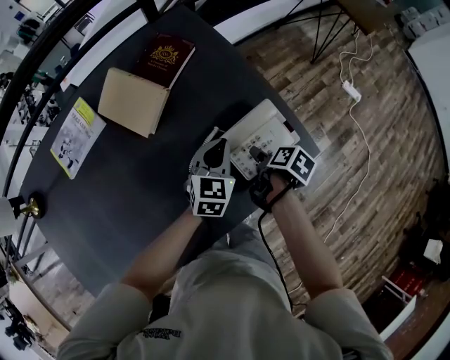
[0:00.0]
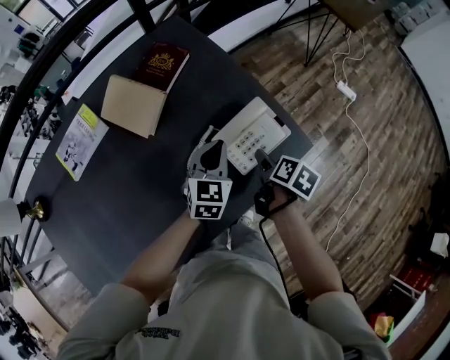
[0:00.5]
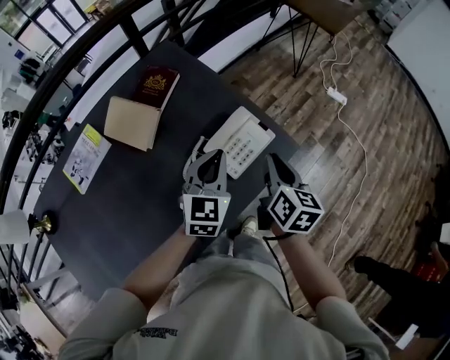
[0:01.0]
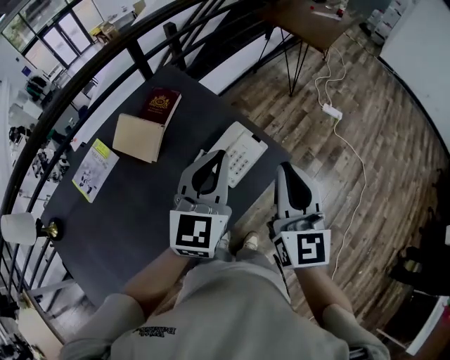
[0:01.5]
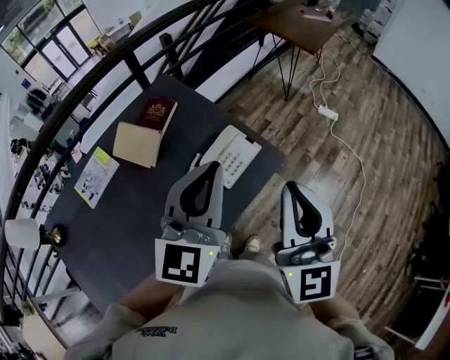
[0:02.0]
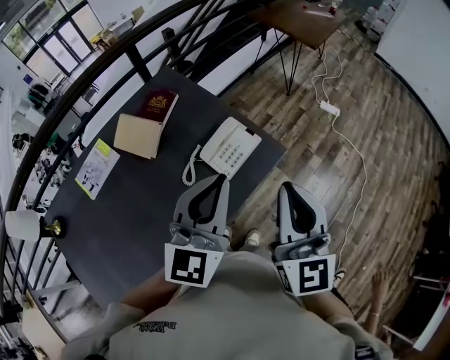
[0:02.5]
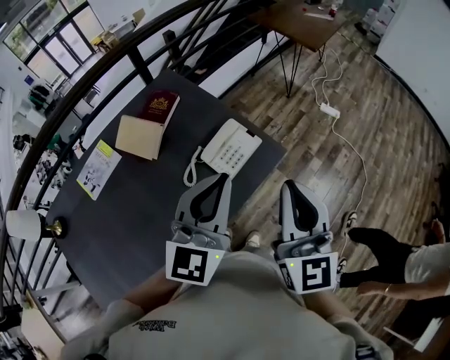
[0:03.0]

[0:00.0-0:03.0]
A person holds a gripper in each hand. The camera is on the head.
0:00.0 to 0:01.5: The left gripper travels upward by roughly 30 cm, and rotates approximately 30 degrees.
0:01.5 to 0:03.0: The left gripper ends up roughly 10 cm from where it was.

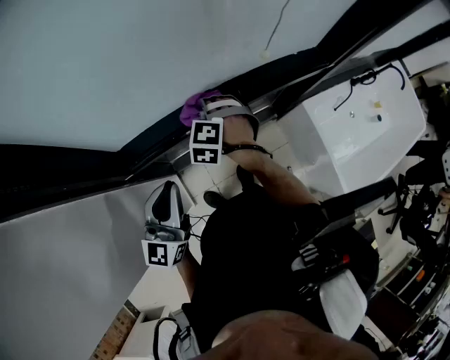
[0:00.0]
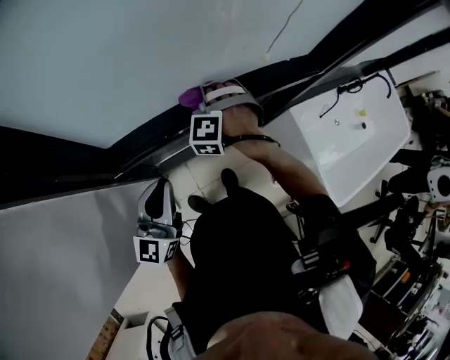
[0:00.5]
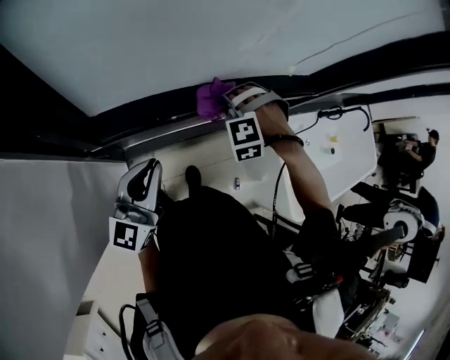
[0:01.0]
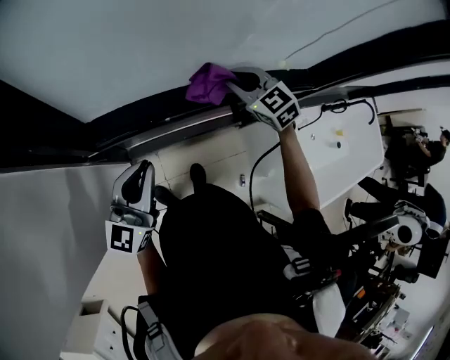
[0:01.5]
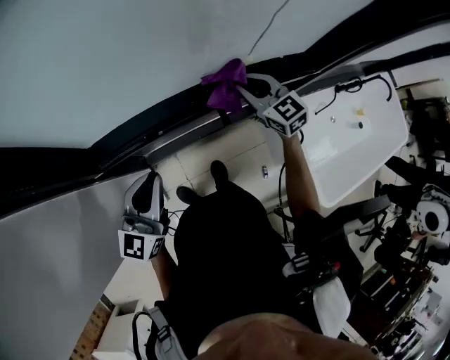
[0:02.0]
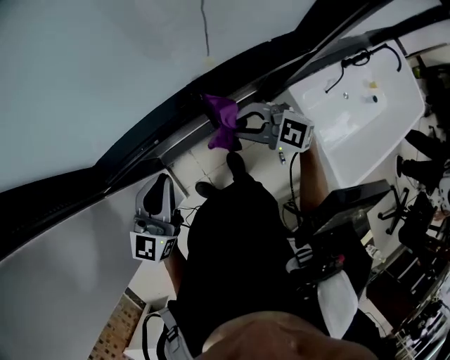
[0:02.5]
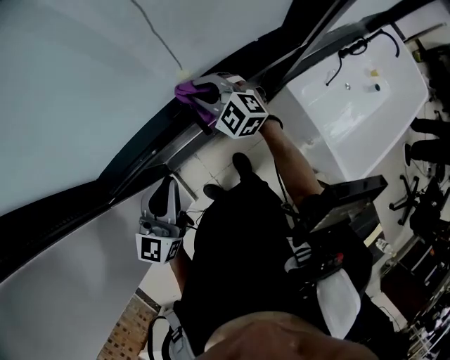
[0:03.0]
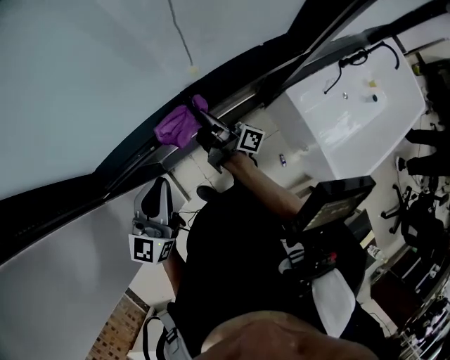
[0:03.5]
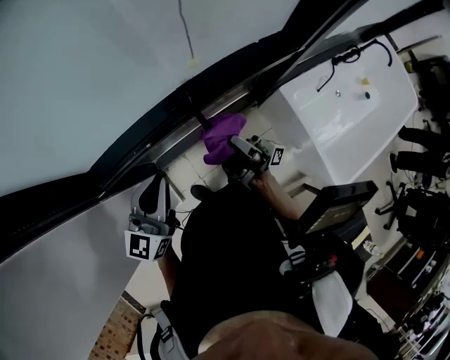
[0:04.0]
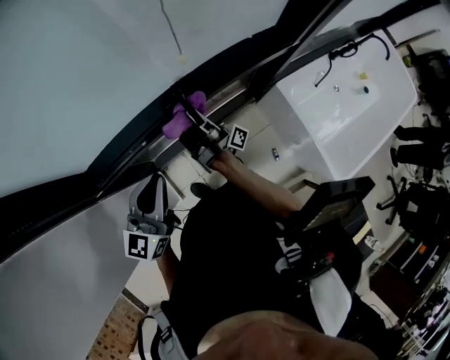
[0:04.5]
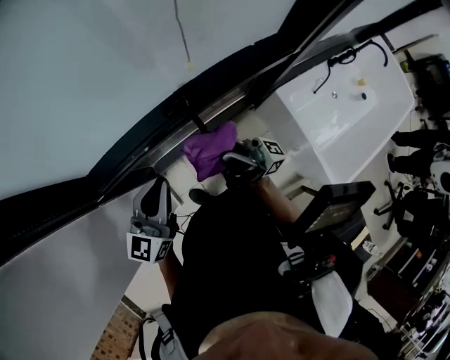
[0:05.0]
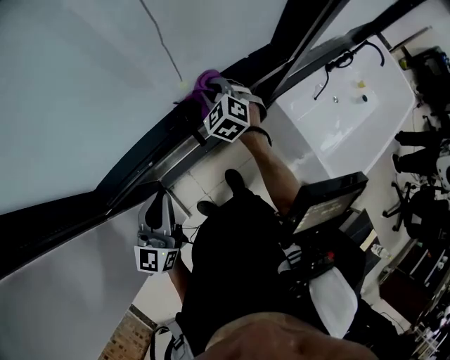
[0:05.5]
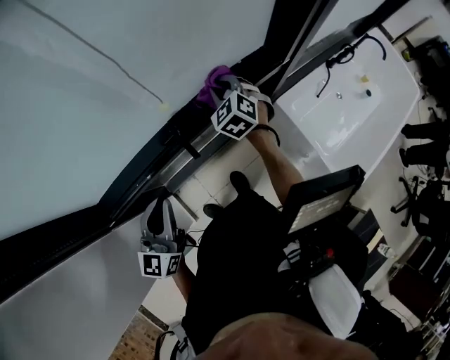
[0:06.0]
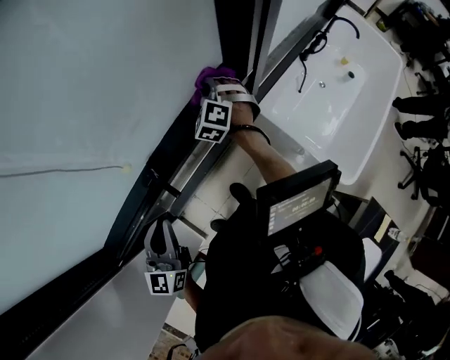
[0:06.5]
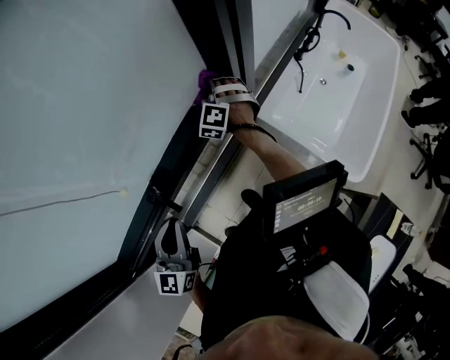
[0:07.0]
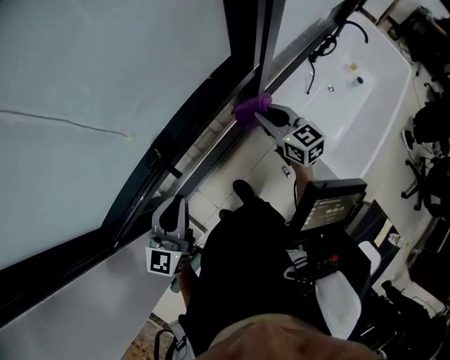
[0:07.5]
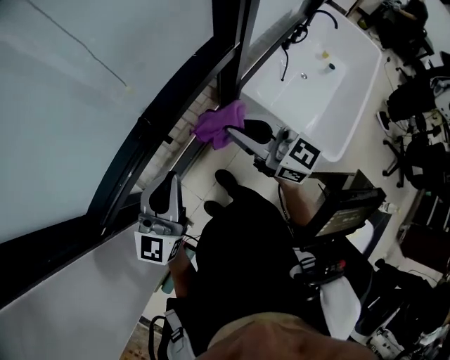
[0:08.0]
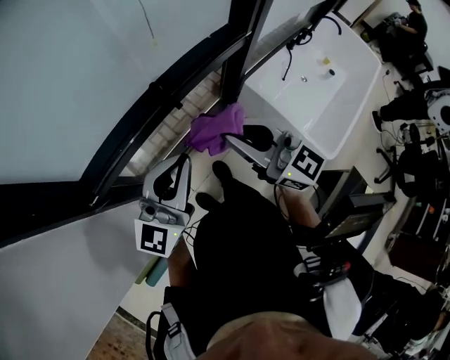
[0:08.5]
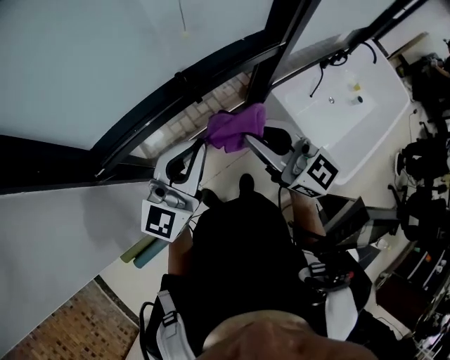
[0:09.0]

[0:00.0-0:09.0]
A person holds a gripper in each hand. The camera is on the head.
0:00.0 to 0:02.0: The right gripper changes place by about 20 cm, and rotates roughly 70 degrees.
0:02.0 to 0:04.5: The left gripper changes place by roughly 5 cm; the right gripper tips its fingers upward by approximately 60 degrees.
0:04.5 to 0:07.0: The left gripper changes place by some 15 cm. The right gripper goes upward and returns, some 10 cm each way, and angles its fingers downward, by some 70 degrees.
0:07.0 to 0:09.0: The right gripper moves some 50 cm, and points its fingers approximately 40 degrees further upward. Meanwhile the left gripper moves approximately 15 cm, and rotates about 20 degrees.

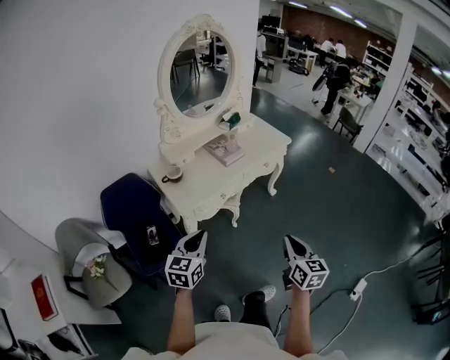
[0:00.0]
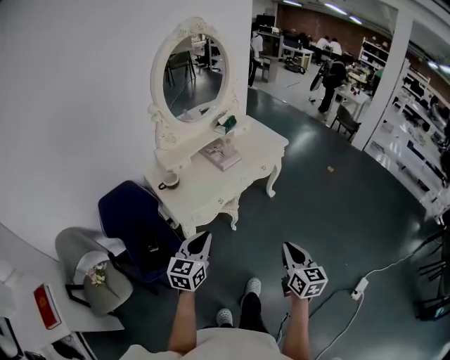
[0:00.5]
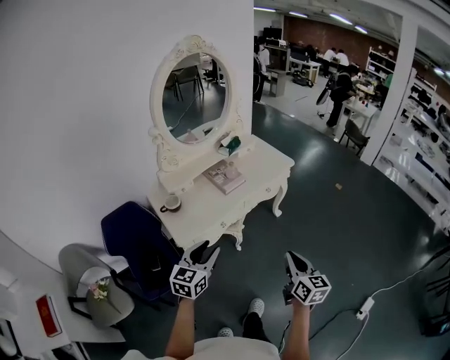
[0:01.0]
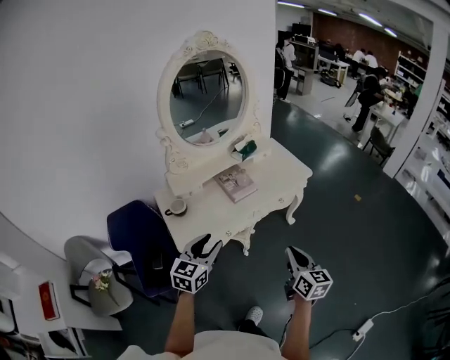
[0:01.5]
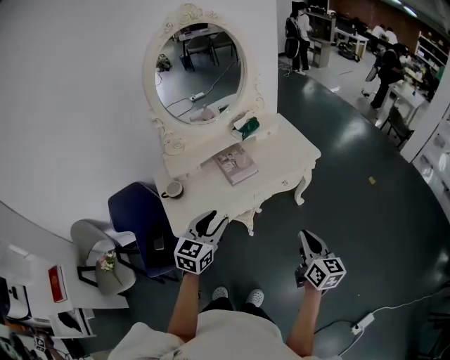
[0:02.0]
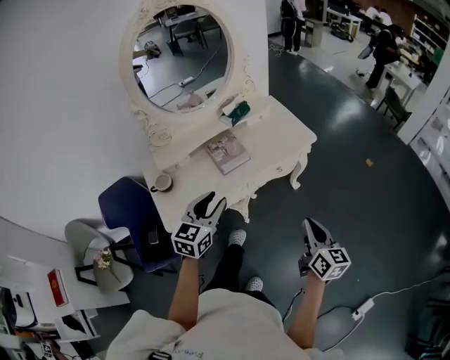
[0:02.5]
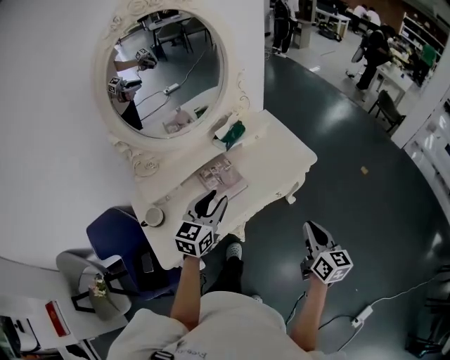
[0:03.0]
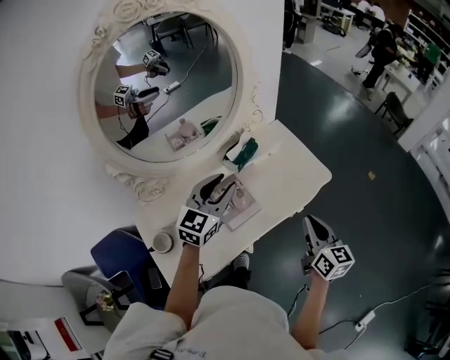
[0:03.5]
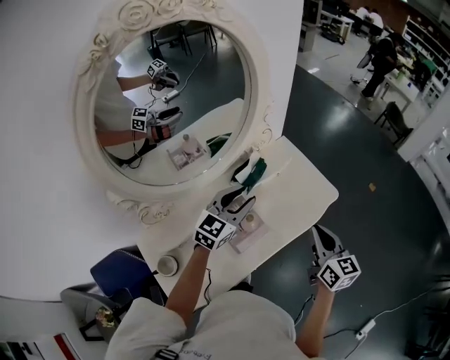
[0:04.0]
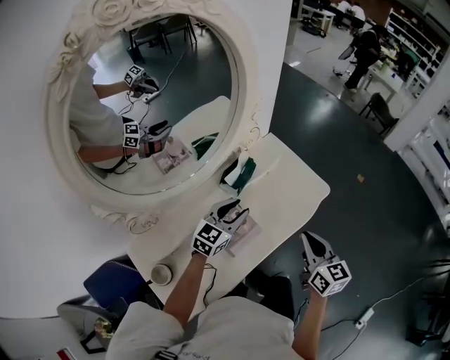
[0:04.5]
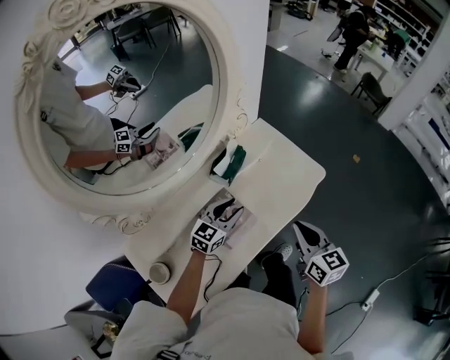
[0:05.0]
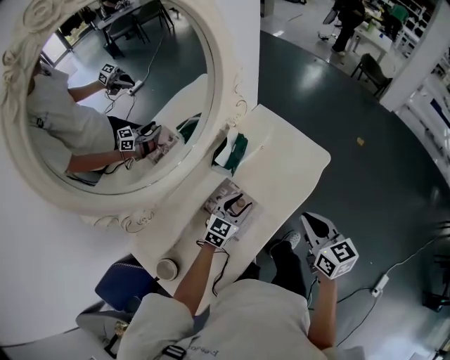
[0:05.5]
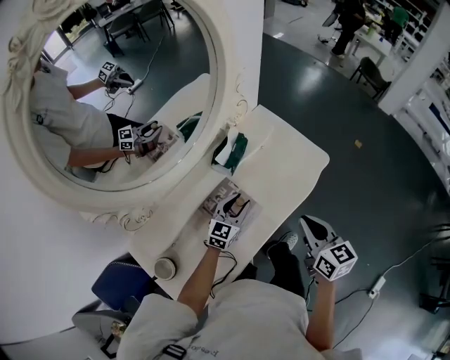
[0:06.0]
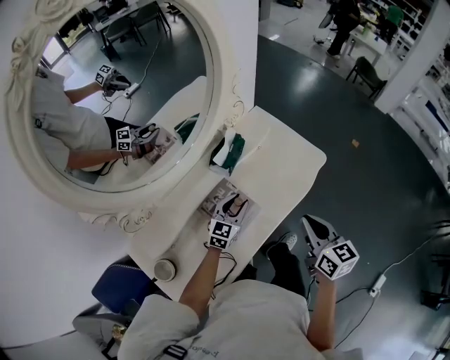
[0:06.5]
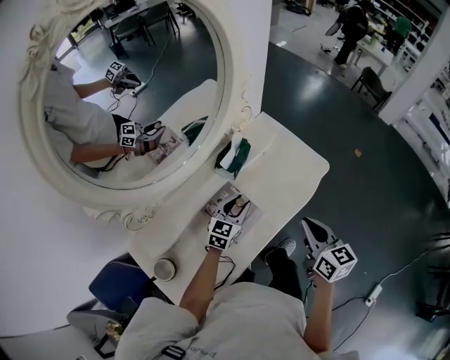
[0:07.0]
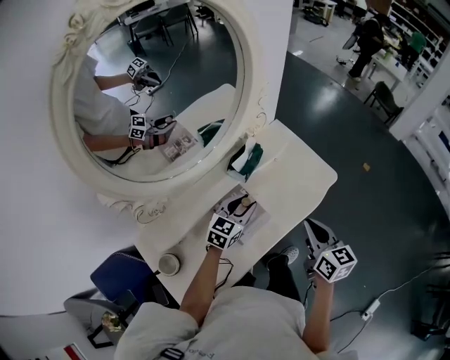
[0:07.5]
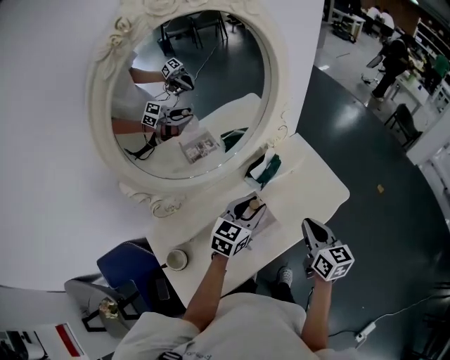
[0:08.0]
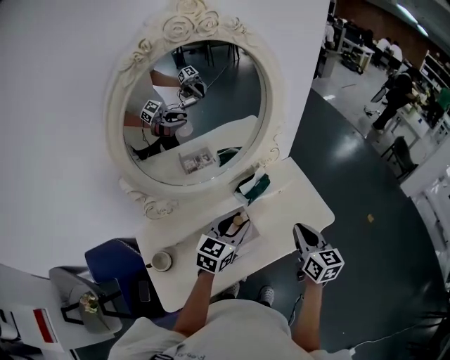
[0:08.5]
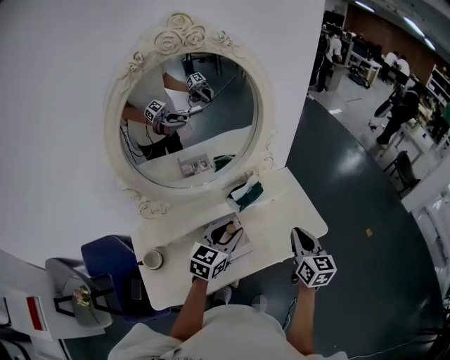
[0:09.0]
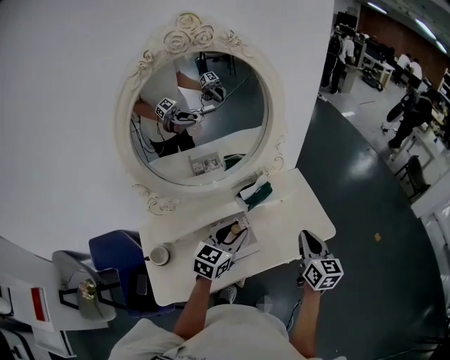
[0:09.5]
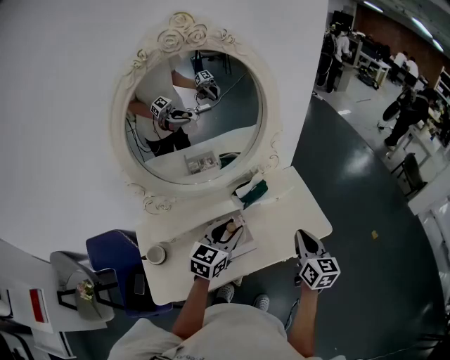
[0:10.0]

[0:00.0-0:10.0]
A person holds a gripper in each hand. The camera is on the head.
0:00.0 to 0:02.0: The grippers both shift forward and to the right by some 30 cm. The left gripper opens.
0:02.0 to 0:04.0: The grippers both shift forward by about 40 cm. The left gripper turns by some 20 degrees.
0:04.0 to 0:06.0: The right gripper shifts about 5 cm downward. The left gripper heads downward, covering about 20 cm.
0:06.0 to 0:08.0: The left gripper travels upward by roughly 15 cm, while the right gripper moves roughly 5 cm.
0:08.0 to 0:10.0: The left gripper shifts by approximately 5 cm. The right gripper moves to the right, approximately 10 cm.

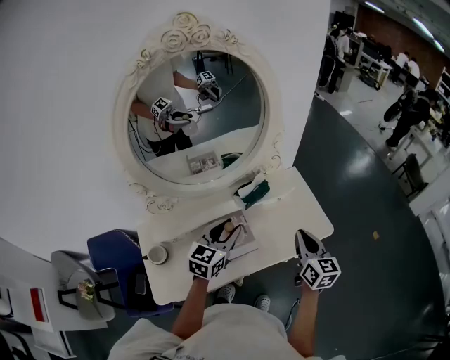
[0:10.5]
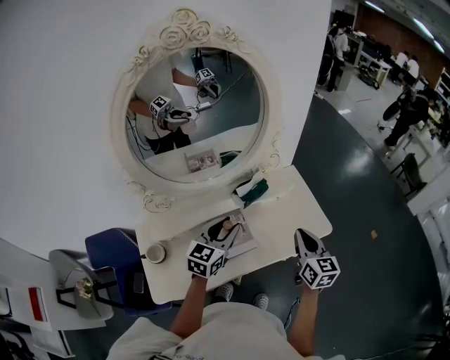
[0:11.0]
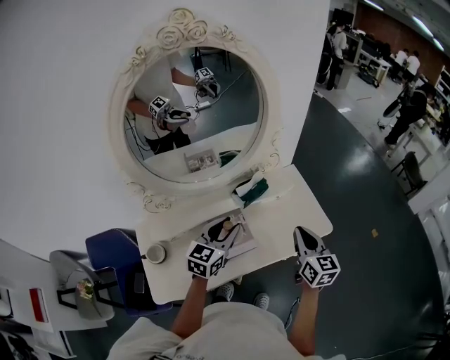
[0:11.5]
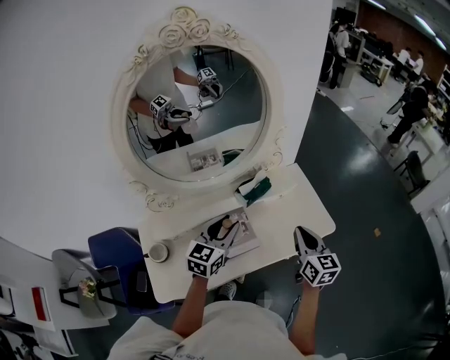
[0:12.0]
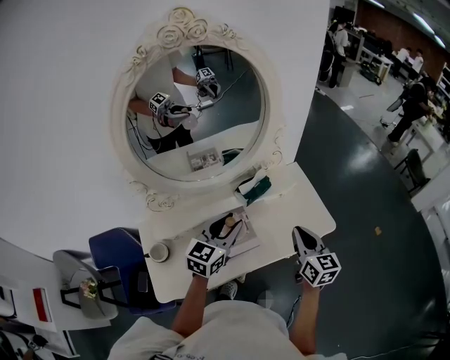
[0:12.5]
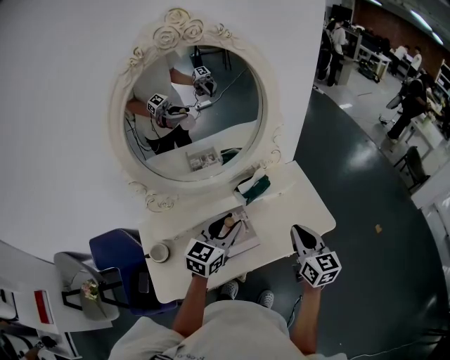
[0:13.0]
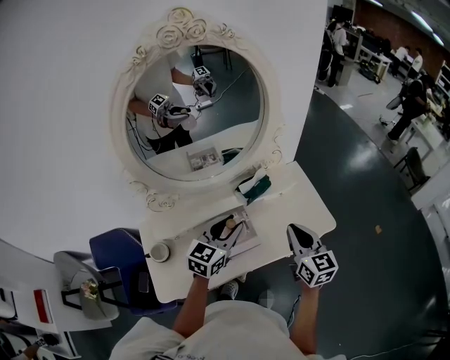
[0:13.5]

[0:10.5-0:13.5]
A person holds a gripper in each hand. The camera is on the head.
0:10.5 to 0:12.0: Both grippers stay put.
0:12.0 to 0:13.5: The grippers move only a little.

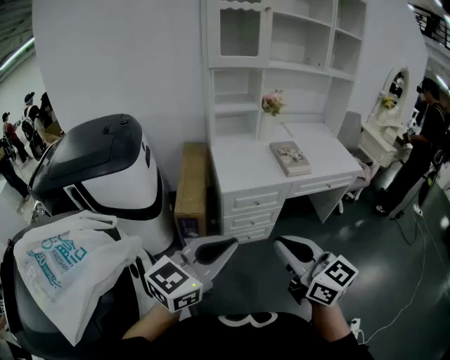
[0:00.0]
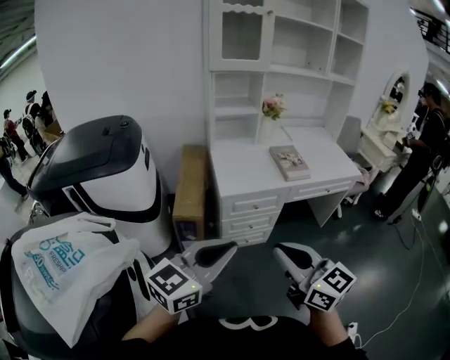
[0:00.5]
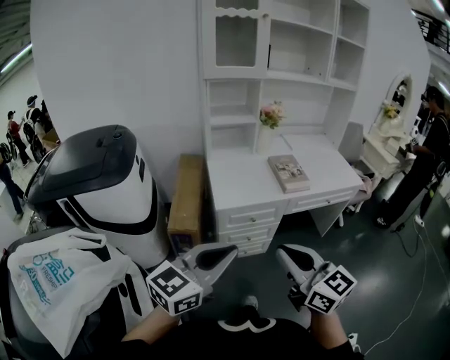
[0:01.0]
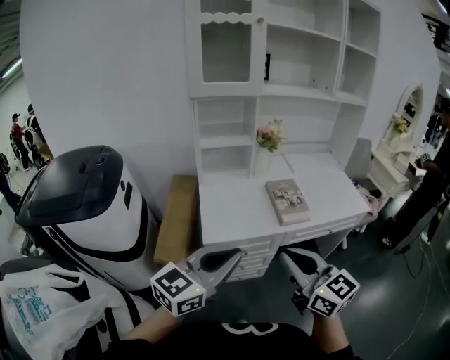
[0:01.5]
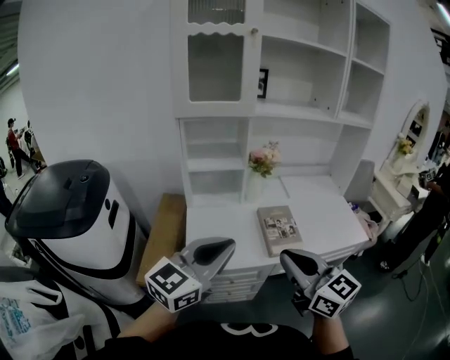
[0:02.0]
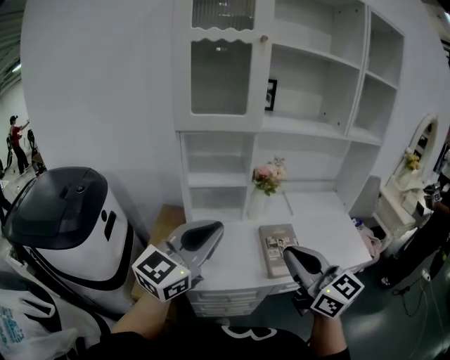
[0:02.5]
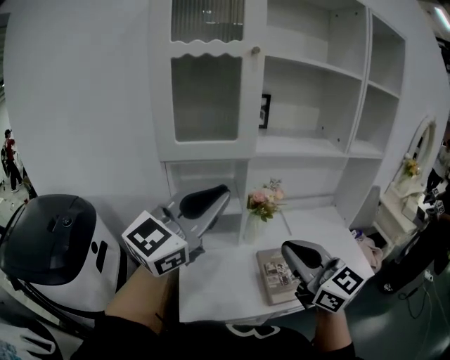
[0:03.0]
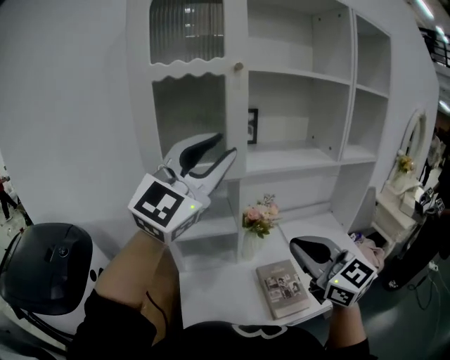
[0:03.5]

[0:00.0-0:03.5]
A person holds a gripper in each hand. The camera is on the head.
0:00.0 to 0:02.0: The left gripper goes about 35 cm forward; the right gripper is displaced forward and to the right by some 40 cm.
0:02.0 to 0:03.5: The left gripper goes about 40 cm upward and forward, changes its angle by about 40 degrees, and opens up. Meanwhile the right gripper goes approximately 25 cm forward and upward.
